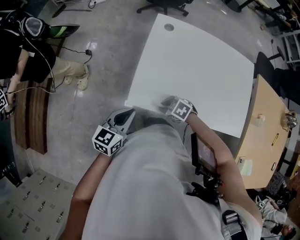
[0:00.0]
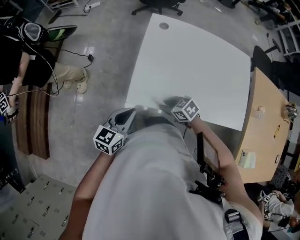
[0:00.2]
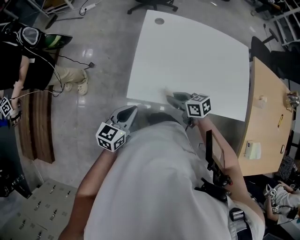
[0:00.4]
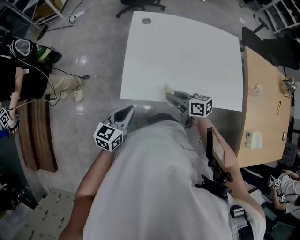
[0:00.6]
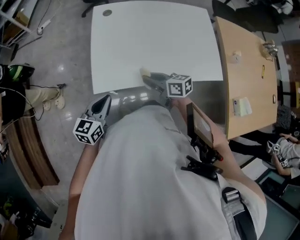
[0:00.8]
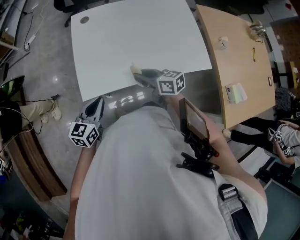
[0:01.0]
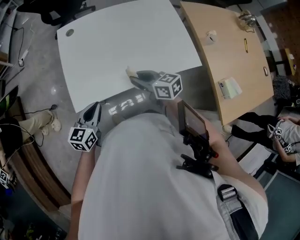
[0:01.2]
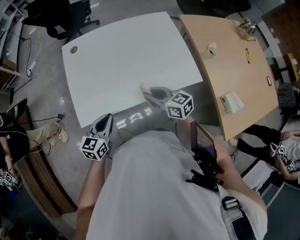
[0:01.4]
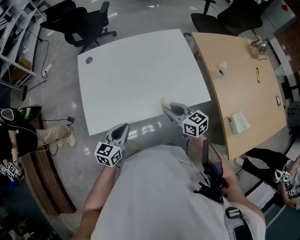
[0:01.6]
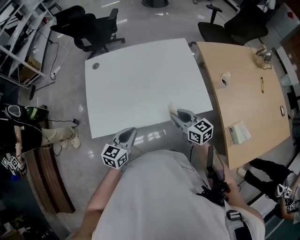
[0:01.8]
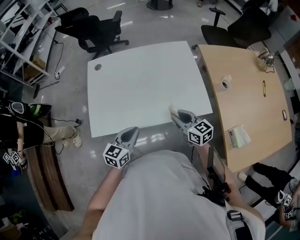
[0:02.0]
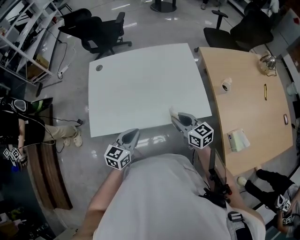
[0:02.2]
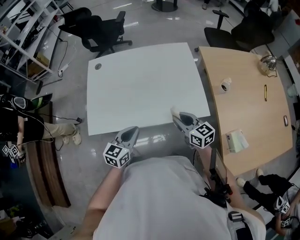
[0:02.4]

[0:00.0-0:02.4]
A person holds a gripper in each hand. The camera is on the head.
0:00.0 to 0:01.2: The right gripper shifts by about 20 cm, and tips its fingers upward by some 40 degrees. Meanwhile the left gripper moves approximately 10 cm.
0:01.2 to 0:02.4: Both grippers move to the right, approximately 20 cm.

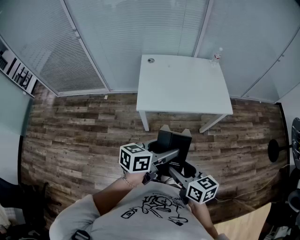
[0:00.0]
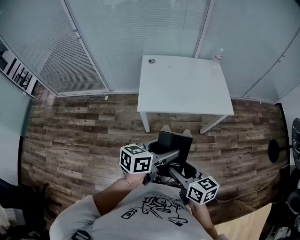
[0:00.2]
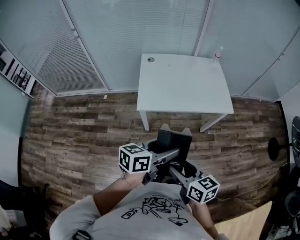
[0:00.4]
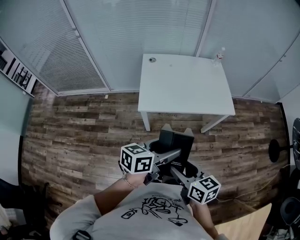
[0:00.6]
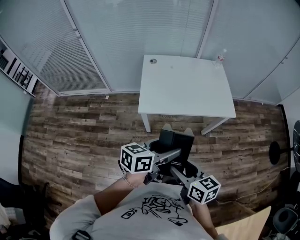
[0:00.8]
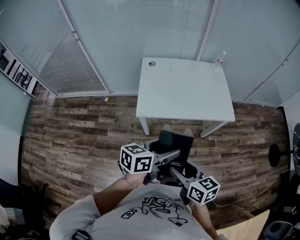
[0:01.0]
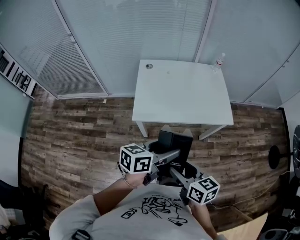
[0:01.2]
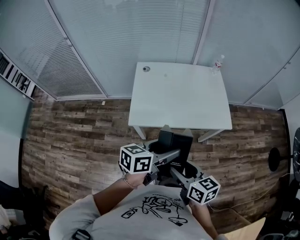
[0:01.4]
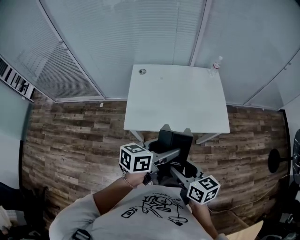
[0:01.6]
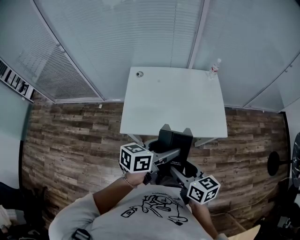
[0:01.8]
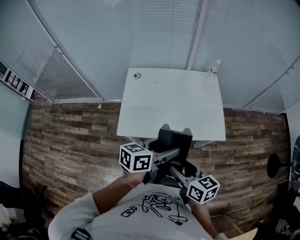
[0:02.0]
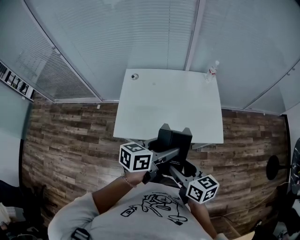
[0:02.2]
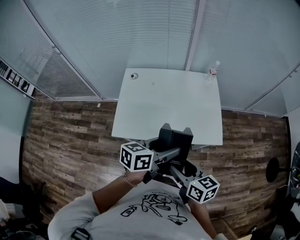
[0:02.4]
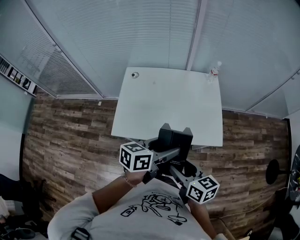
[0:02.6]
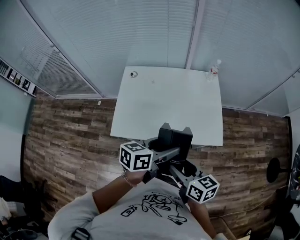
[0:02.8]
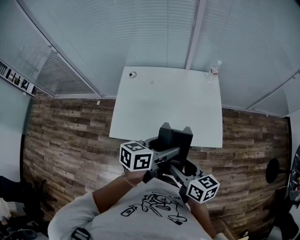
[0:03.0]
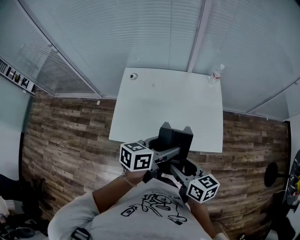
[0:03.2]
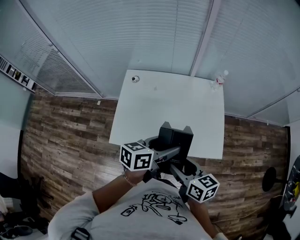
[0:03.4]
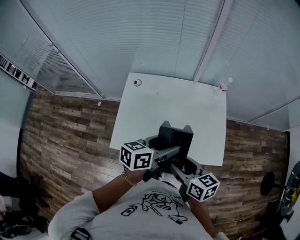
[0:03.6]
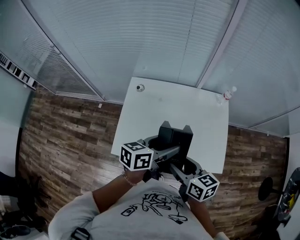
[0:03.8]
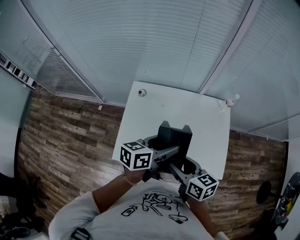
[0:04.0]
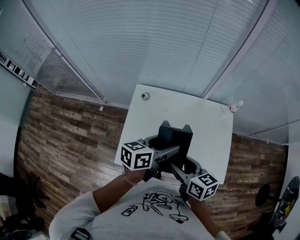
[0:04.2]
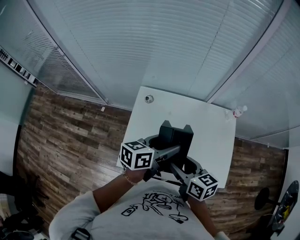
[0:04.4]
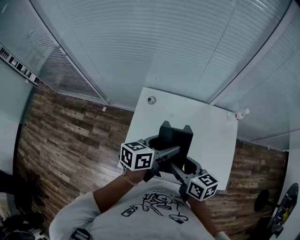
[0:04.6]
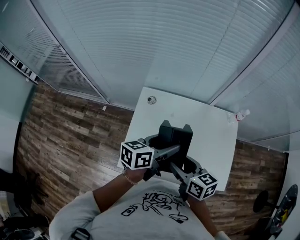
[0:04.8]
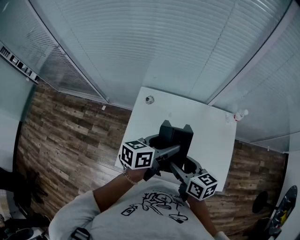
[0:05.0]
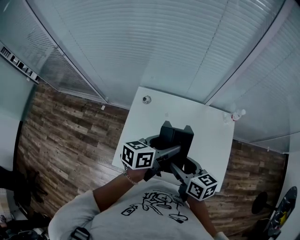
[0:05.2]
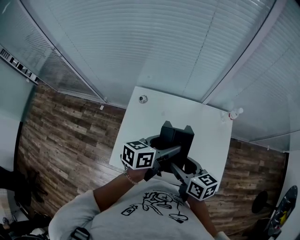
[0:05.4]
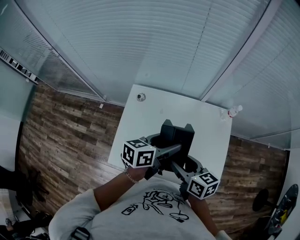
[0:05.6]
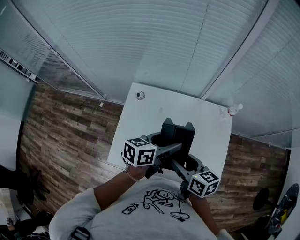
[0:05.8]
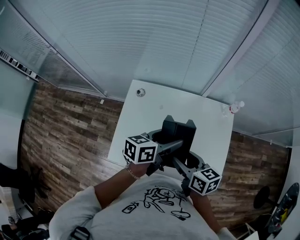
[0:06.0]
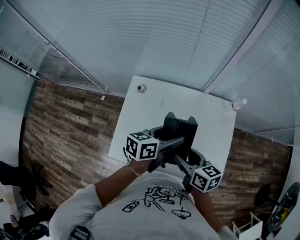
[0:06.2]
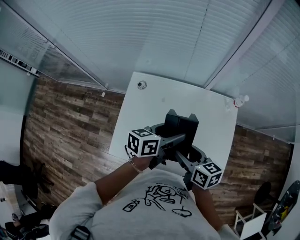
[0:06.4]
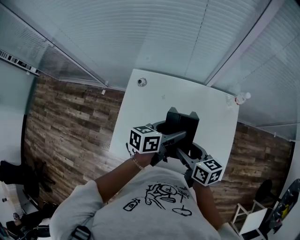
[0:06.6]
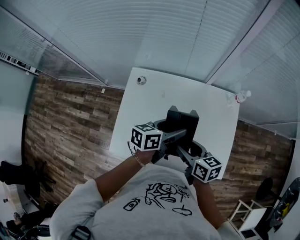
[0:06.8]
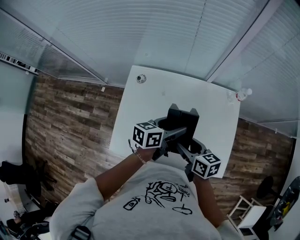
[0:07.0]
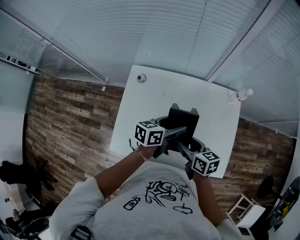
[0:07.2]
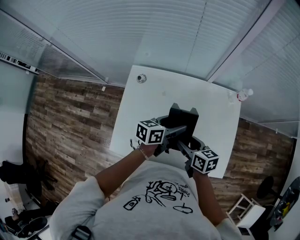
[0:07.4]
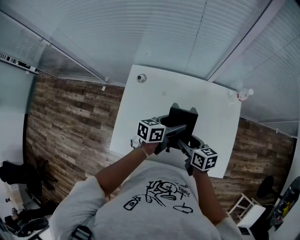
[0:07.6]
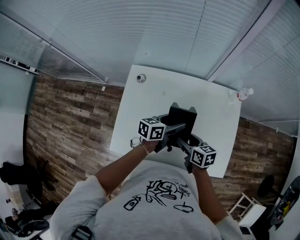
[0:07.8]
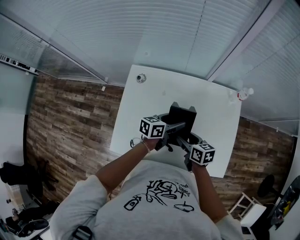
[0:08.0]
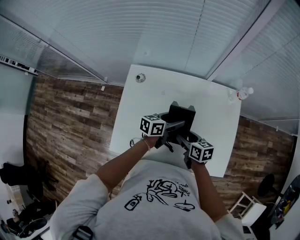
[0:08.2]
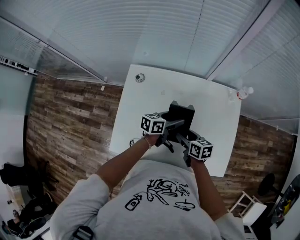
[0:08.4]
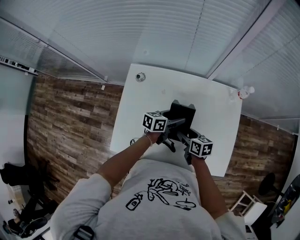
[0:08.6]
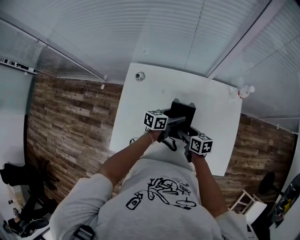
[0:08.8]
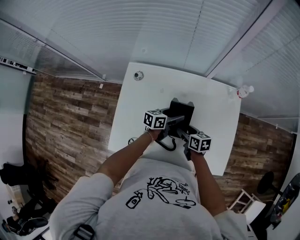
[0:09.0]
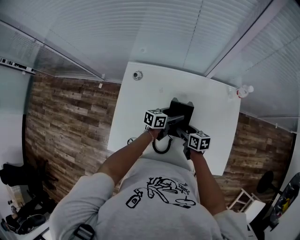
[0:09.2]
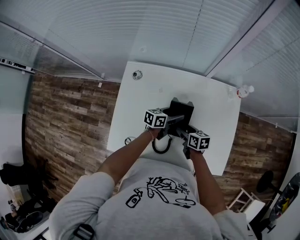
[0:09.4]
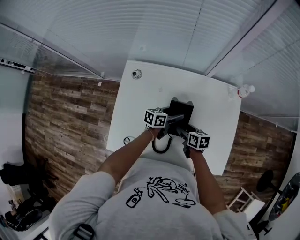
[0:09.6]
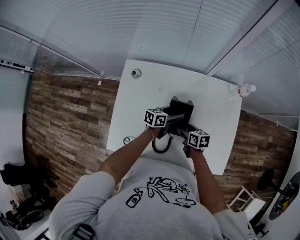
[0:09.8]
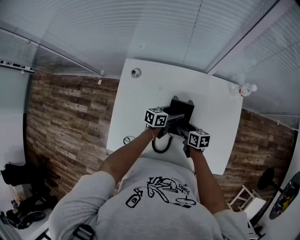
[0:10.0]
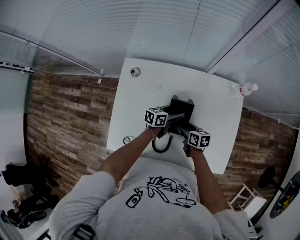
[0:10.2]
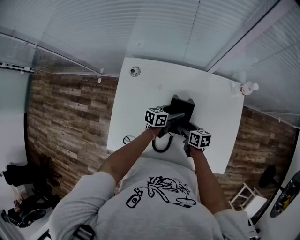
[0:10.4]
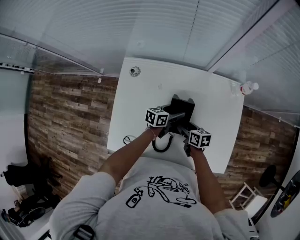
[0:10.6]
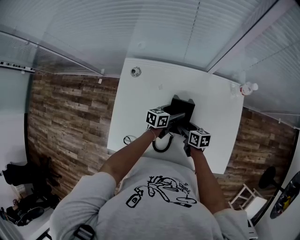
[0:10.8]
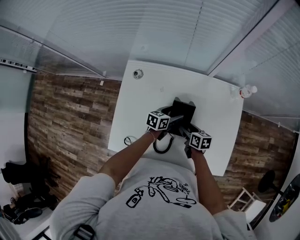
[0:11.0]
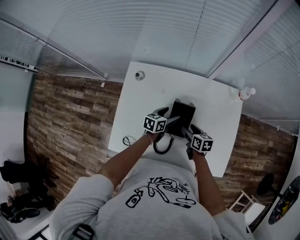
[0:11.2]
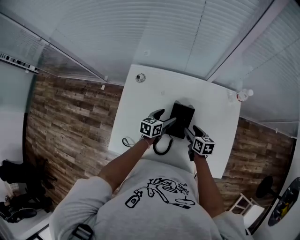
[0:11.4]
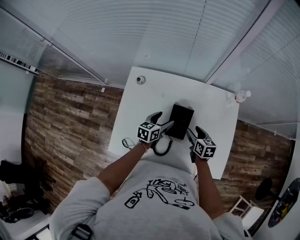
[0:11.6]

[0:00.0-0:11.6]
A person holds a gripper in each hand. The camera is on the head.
0:00.0 to 0:01.4: Both grippers travel together forward, roughly 15 cm.
0:01.4 to 0:02.8: The grippers both shift forward and to the right by approximately 20 cm.
0:02.8 to 0:04.4: The two grippers go roughly 30 cm forward and to the left.
0:04.4 to 0:05.8: Both grippers travel together to the right, about 10 cm.
0:05.8 to 0:07.2: Both grippers travel together downward, some 10 cm.
0:07.2 to 0:08.8: Both grippers travel together downward, roughly 15 cm.
0:08.8 to 0:10.2: Both grippers travel together downward, roughly 5 cm.
0:10.2 to 0:11.6: The right gripper goes approximately 5 cm upward, while the left gripper is displaced to the left and upward by roughly 10 cm, and swivels approximately 20 degrees.

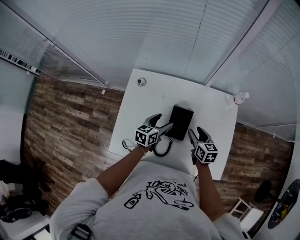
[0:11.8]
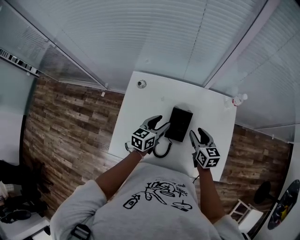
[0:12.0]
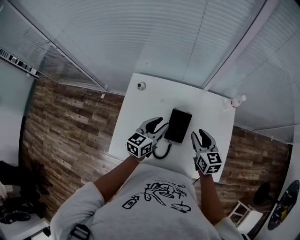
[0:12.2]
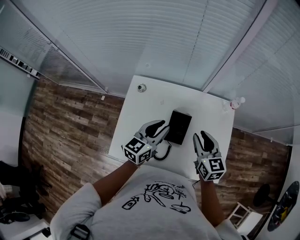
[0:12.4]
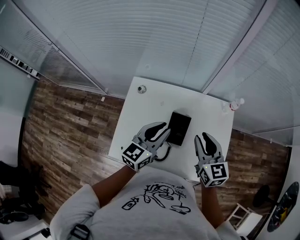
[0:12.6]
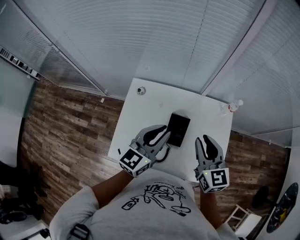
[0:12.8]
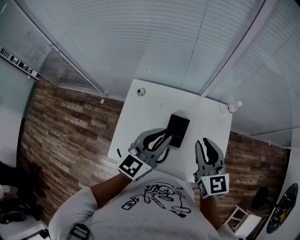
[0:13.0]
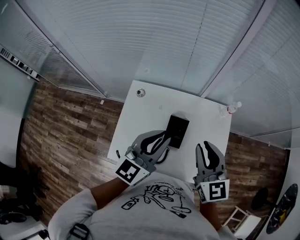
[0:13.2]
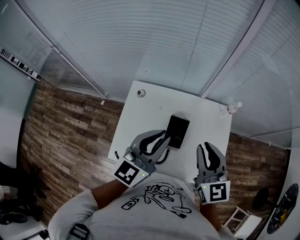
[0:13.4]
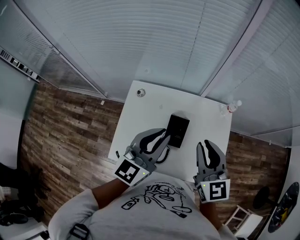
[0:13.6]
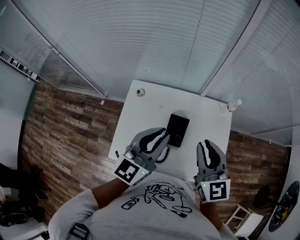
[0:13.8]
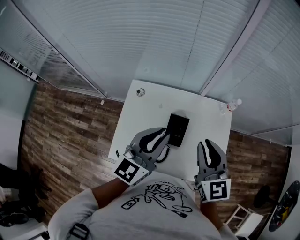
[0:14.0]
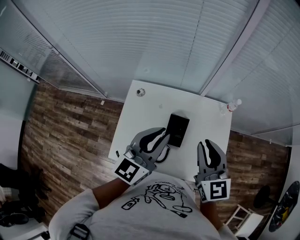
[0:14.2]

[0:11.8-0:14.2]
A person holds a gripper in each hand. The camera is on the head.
0:11.8 to 0:13.0: Both grippers travel together upward, roughly 30 cm. The left gripper turns by roughly 30 degrees, and closes; the right gripper turns by roughly 30 degrees, and closes.
0:13.0 to 0:14.2: The grippers make only small movements.

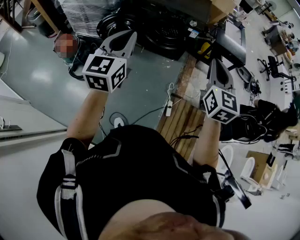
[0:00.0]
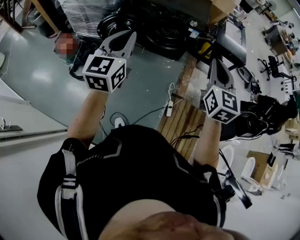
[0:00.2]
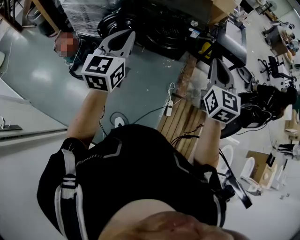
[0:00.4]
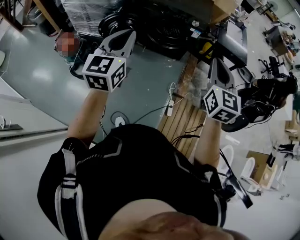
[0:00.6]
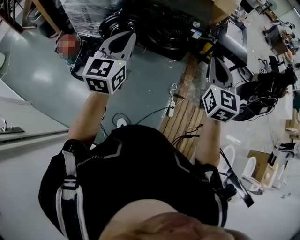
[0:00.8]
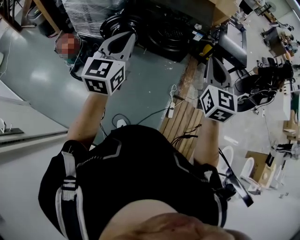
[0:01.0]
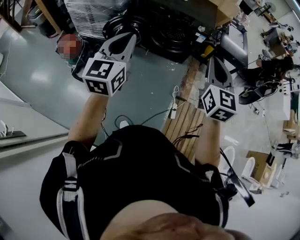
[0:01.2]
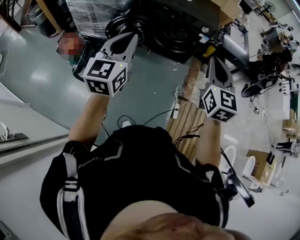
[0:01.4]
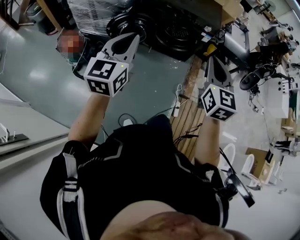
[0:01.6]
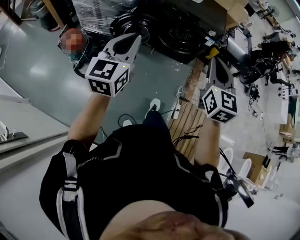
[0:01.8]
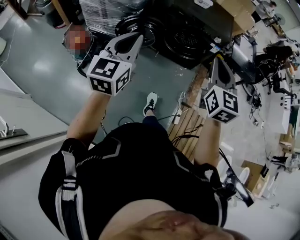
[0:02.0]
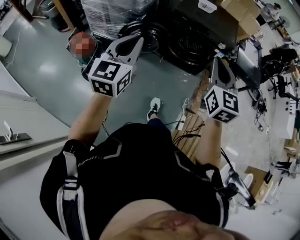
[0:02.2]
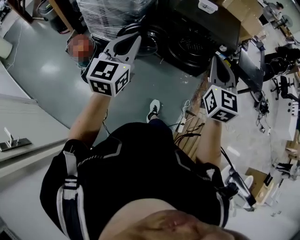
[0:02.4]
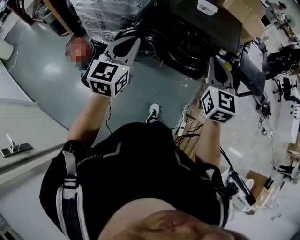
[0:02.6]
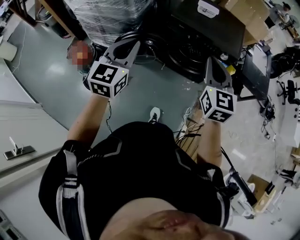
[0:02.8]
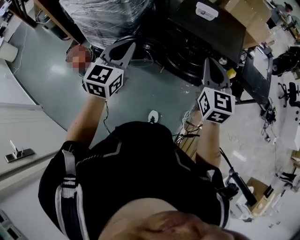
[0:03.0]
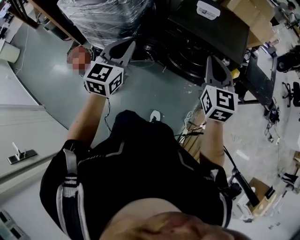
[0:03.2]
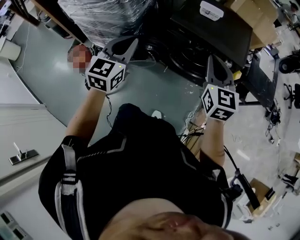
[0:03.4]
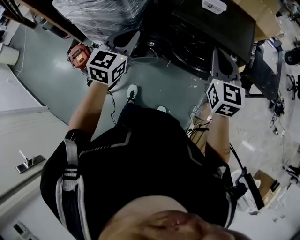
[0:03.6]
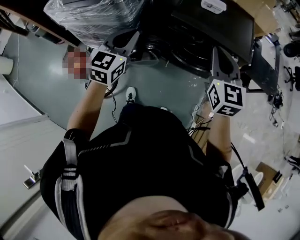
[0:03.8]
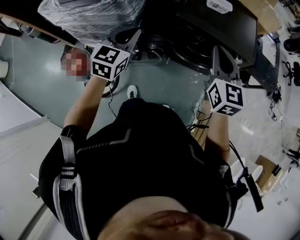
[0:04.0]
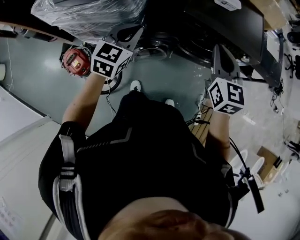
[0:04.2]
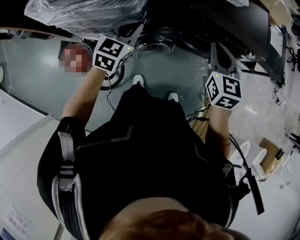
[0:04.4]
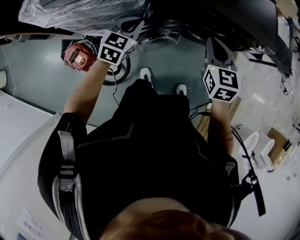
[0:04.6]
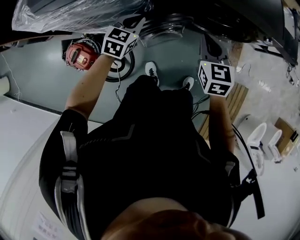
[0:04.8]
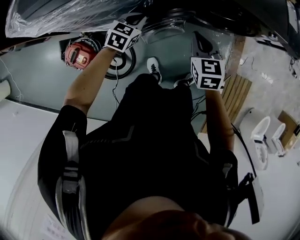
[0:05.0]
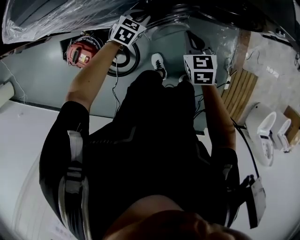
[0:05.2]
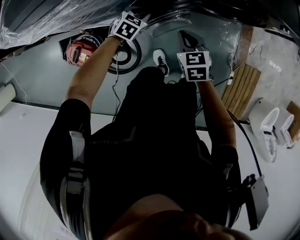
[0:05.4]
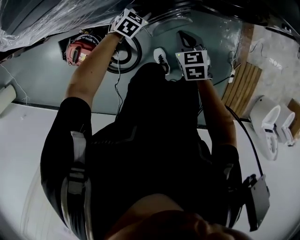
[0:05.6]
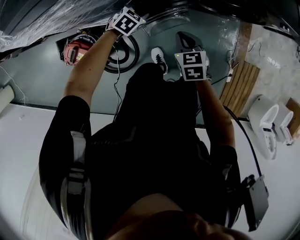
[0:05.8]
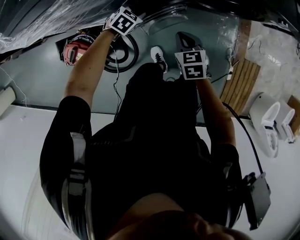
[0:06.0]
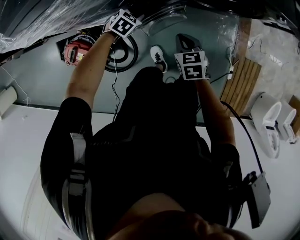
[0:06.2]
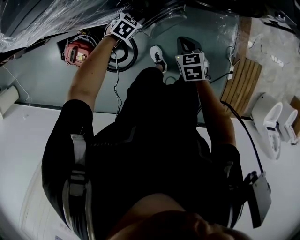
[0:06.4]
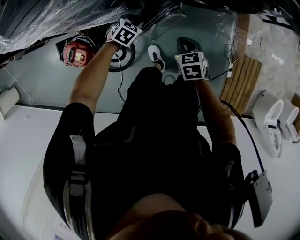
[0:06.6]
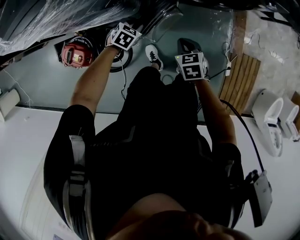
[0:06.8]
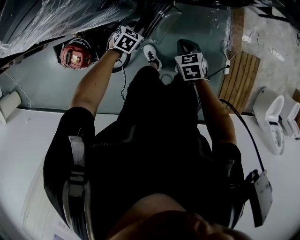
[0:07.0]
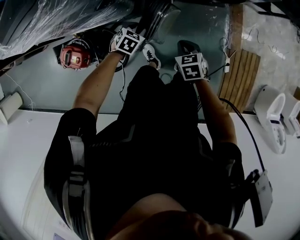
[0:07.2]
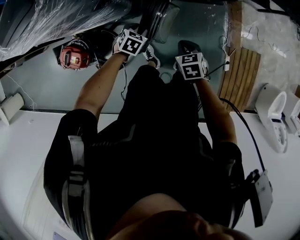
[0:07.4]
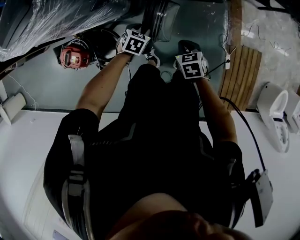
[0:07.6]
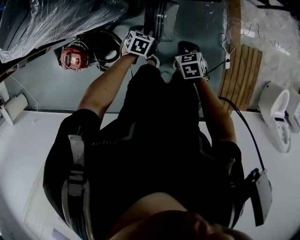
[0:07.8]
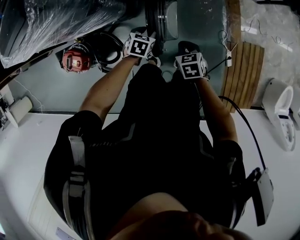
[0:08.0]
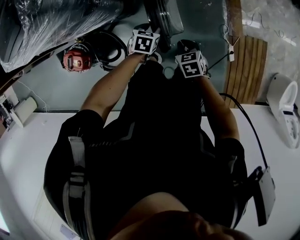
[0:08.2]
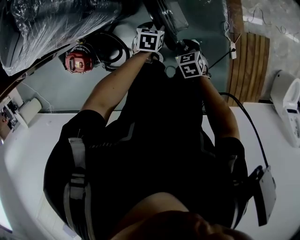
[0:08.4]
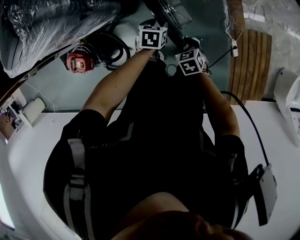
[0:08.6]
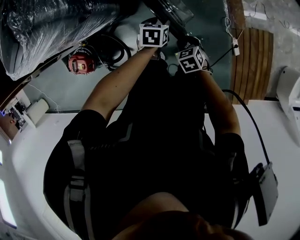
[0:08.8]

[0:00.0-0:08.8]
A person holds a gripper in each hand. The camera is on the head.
0:00.0 to 0:01.4: Both grippers travel together to the left, approximately 15 cm.
0:01.4 to 0:03.0: The grippers both shift forward by some 30 cm.
0:03.0 to 0:04.4: The right gripper goes roughly 25 cm to the left, forward and downward. The left gripper goes some 30 cm forward, to the left and downward, and changes its angle by roughly 30 degrees.
0:04.4 to 0:05.8: The left gripper goes about 35 cm downward, tips its fingers downward by roughly 30 degrees, and opens its fingers; the right gripper moves downward and to the left, roughly 30 cm, and rotates approximately 30 degrees.
0:05.8 to 0:07.4: The two grippers go approximately 20 cm to the right and backward.
0:07.4 to 0:08.8: The left gripper heads to the right, covering about 20 cm. The right gripper goes roughly 15 cm to the right and downward, and opens its fingers.
